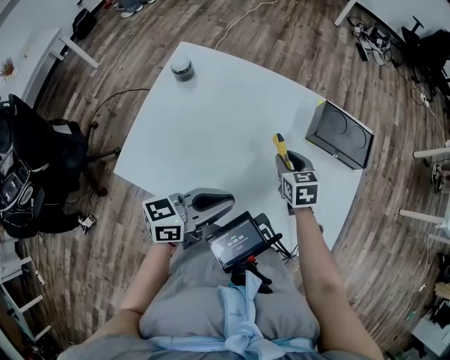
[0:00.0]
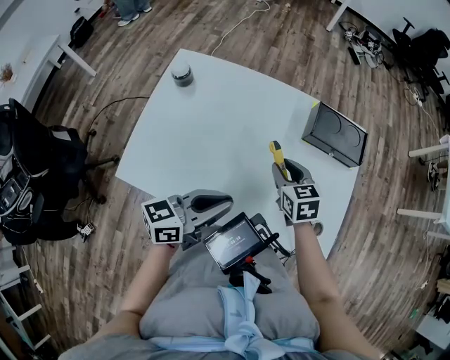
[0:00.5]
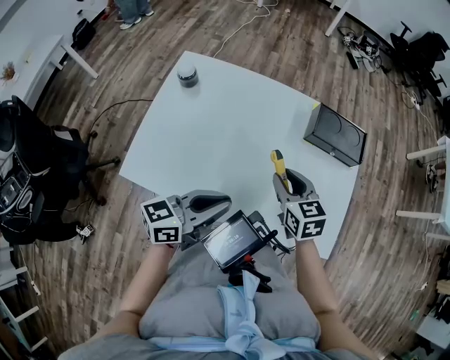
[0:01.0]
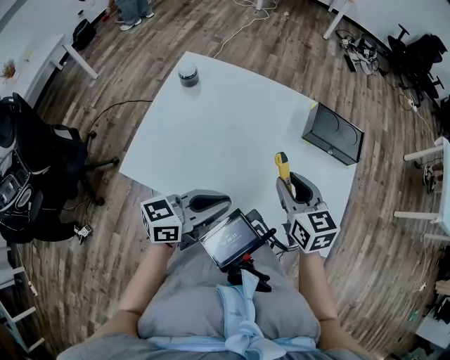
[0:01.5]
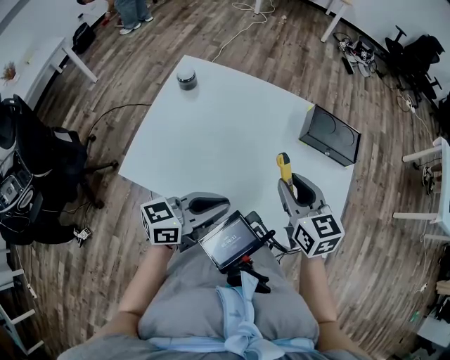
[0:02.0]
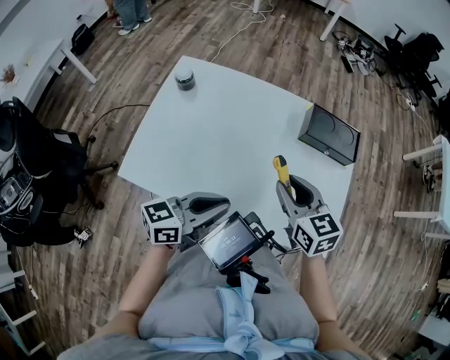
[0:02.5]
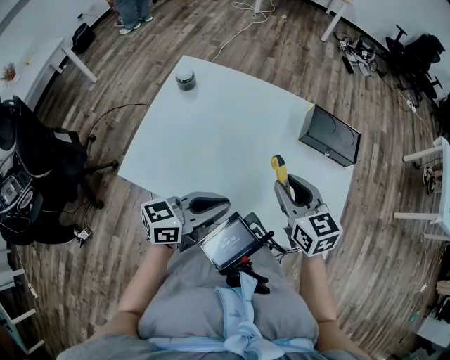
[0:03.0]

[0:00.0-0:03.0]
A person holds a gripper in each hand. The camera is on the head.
0:00.0 to 0:01.5: The right gripper travels upward and backward by about 15 cm.
0:01.5 to 0:03.0: The grippers stay close to where they were, moving slightly.

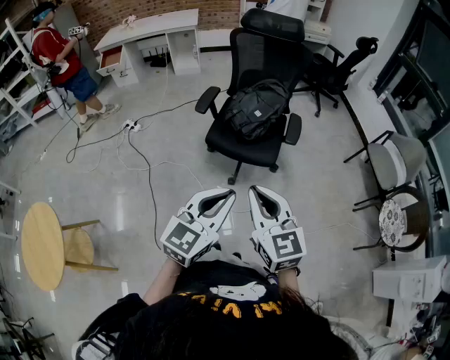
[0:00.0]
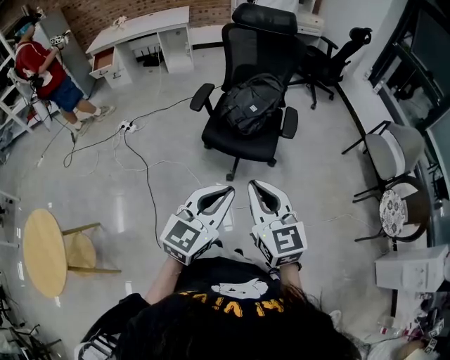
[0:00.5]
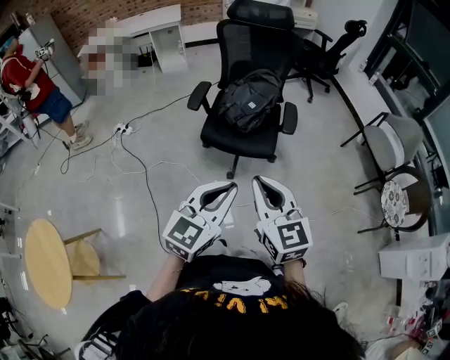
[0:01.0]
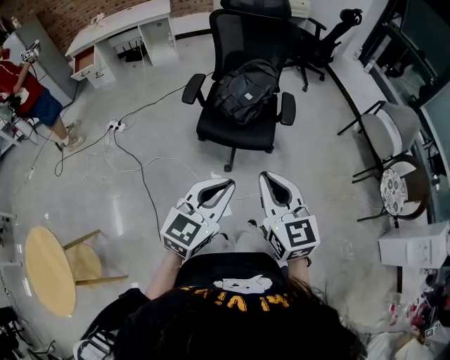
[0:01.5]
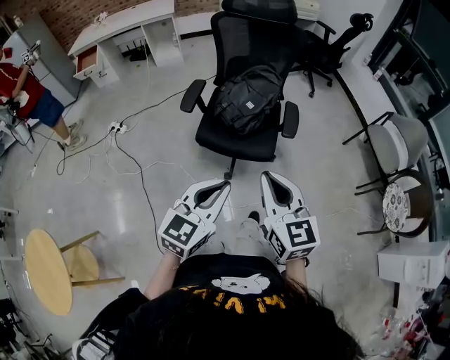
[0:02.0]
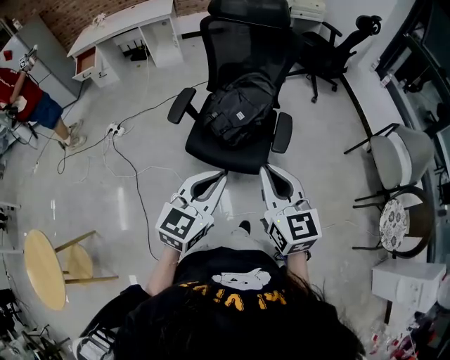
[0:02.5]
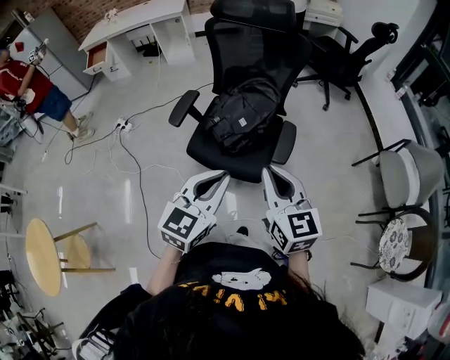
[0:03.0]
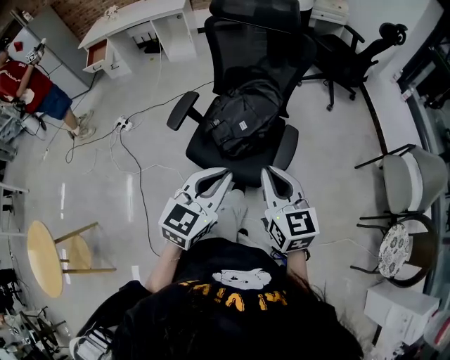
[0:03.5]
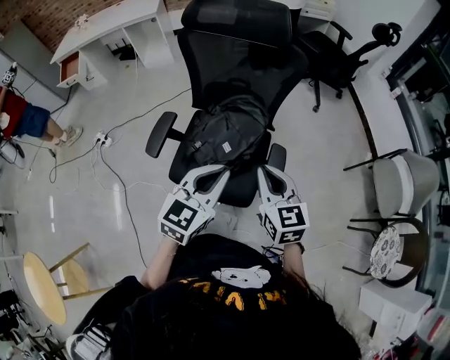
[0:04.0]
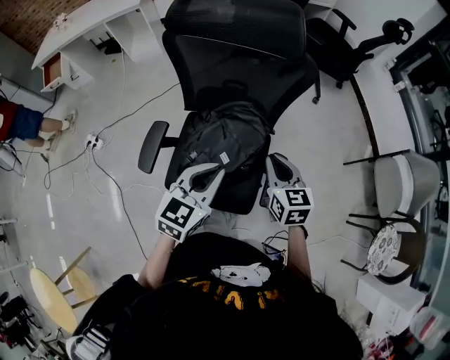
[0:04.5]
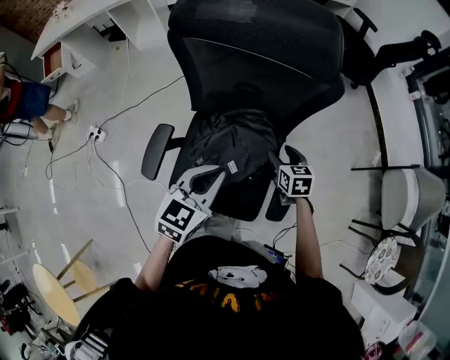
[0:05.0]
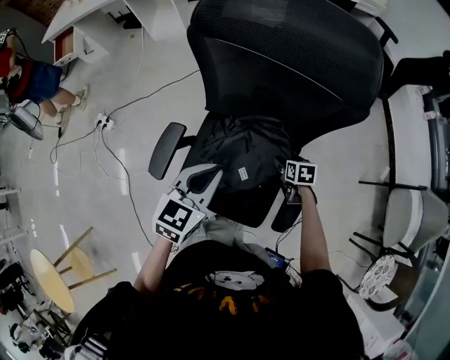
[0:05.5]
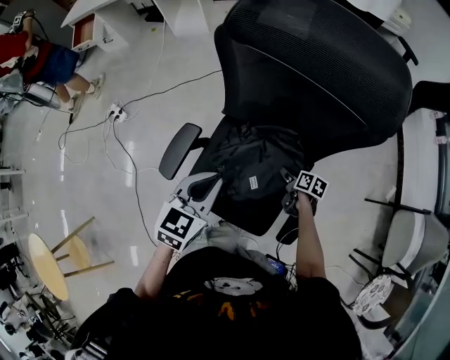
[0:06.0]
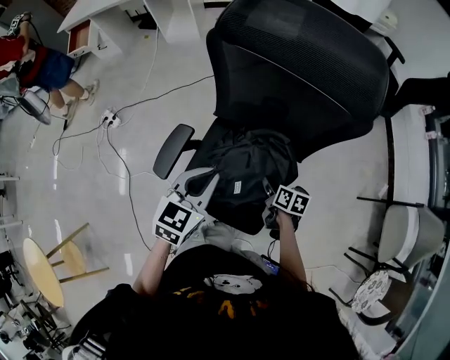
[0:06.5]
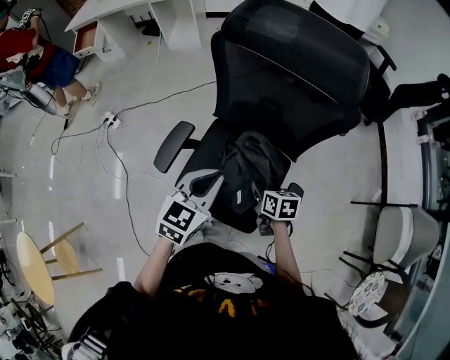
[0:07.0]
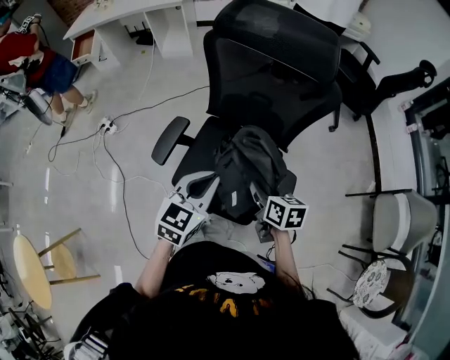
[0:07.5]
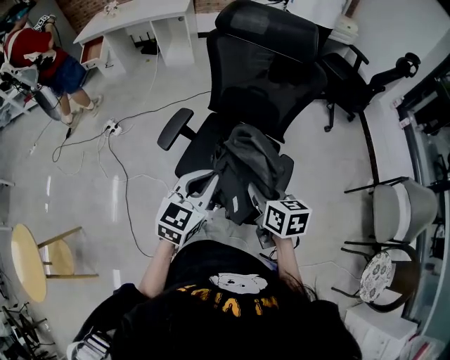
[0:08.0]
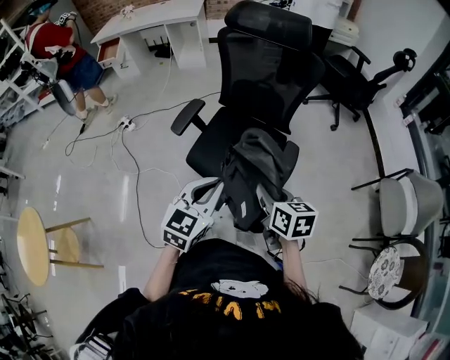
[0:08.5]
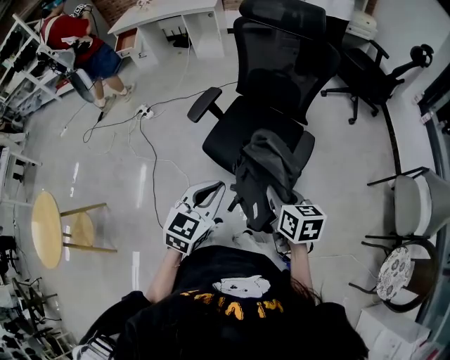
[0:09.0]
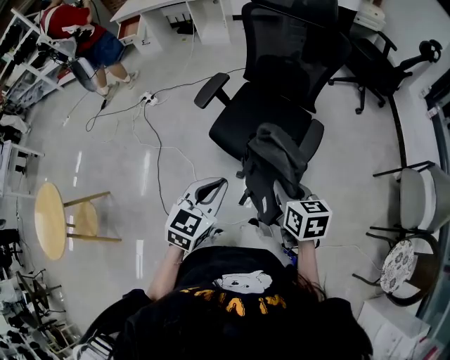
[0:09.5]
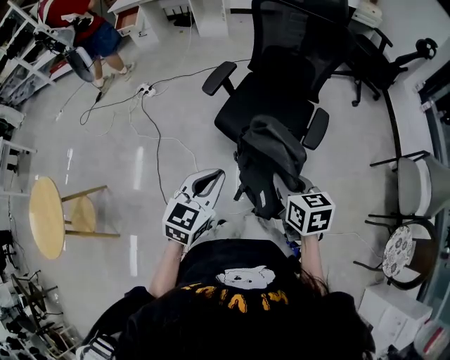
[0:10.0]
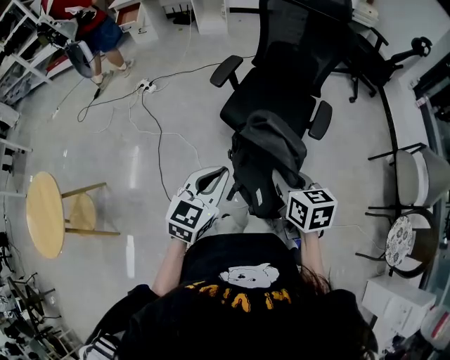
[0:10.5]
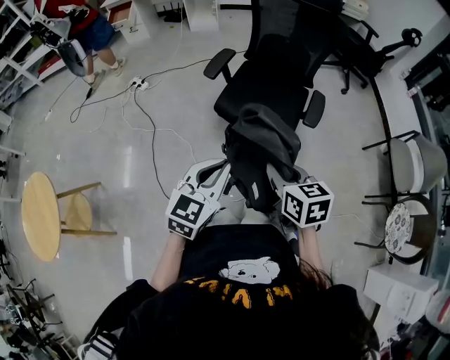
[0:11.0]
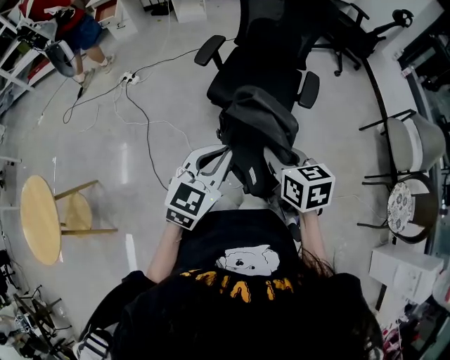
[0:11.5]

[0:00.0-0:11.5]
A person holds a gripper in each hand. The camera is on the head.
0:00.0 to 0:02.0: The grippers both shift forward by roughly 10 cm.
0:02.0 to 0:04.0: The grippers both shift forward by roughly 35 cm.
0:04.0 to 0:06.0: The right gripper travels downward and forward by roughly 40 cm, swivels approximately 60 degrees, and opens; the left gripper is displaced forward, to the left and downward by about 25 cm.
0:06.0 to 0:07.5: The left gripper travels backward and upward by roughly 15 cm; the right gripper heads upward and backward, covering approximately 30 cm, rotates some 30 degrees, and closes its fingers.
0:07.5 to 0:09.5: Both grippers travel together backward, roughly 30 cm.
0:09.5 to 0:11.5: The left gripper shifts about 15 cm backward and to the left; the right gripper heads to the left and backward, covering about 20 cm.

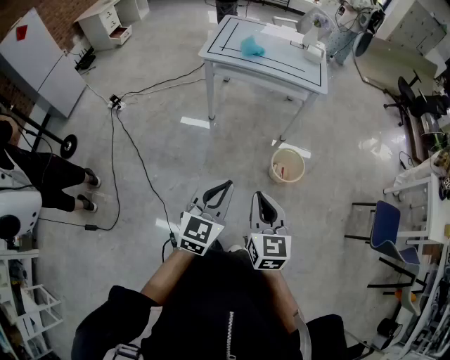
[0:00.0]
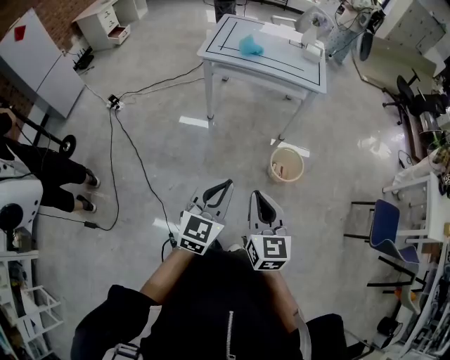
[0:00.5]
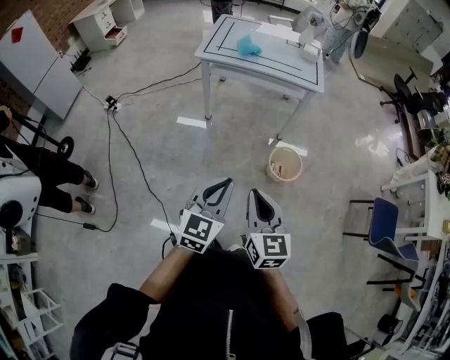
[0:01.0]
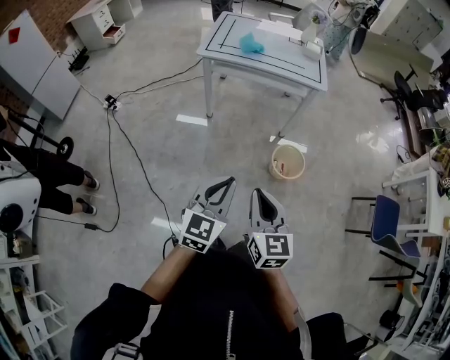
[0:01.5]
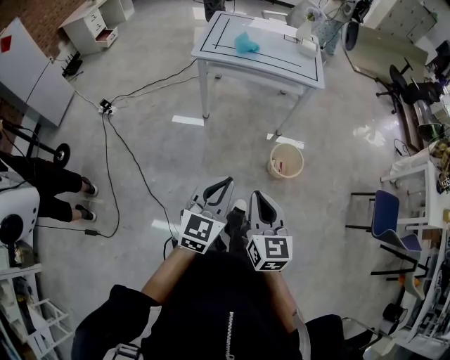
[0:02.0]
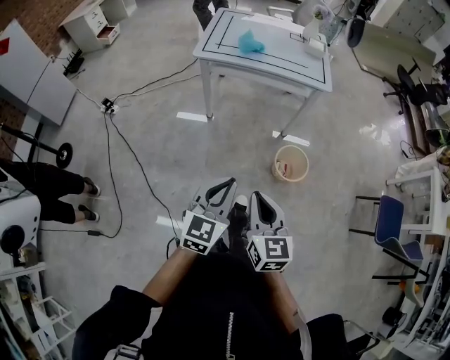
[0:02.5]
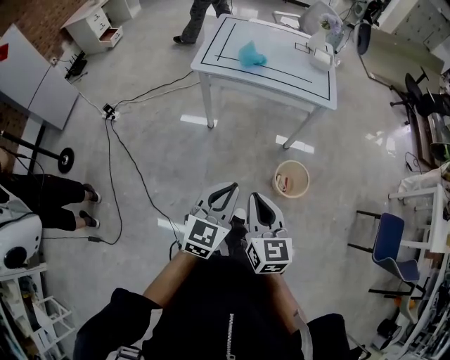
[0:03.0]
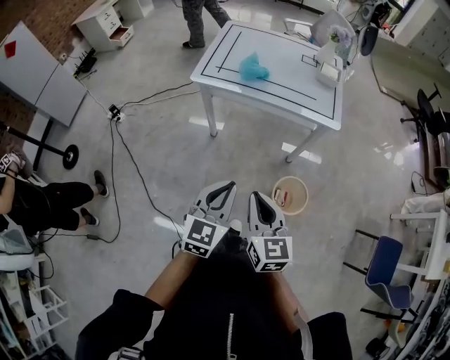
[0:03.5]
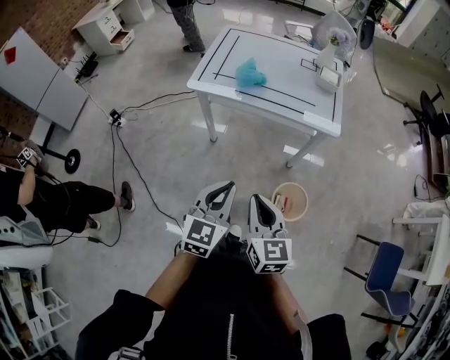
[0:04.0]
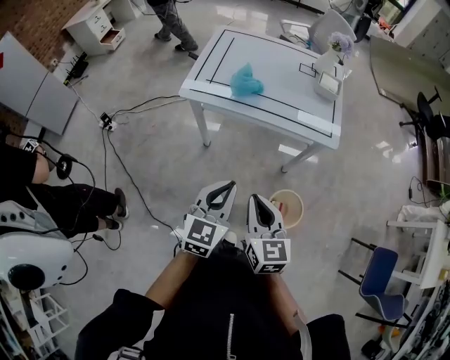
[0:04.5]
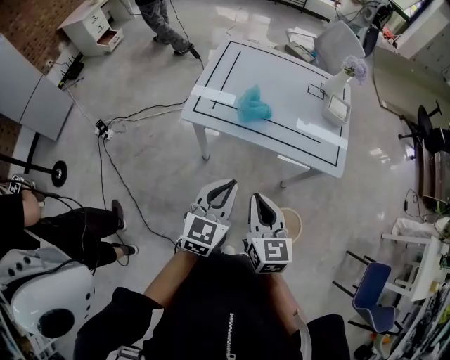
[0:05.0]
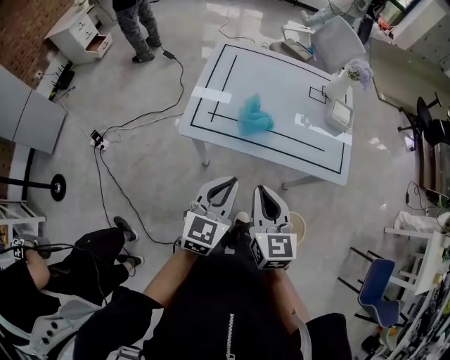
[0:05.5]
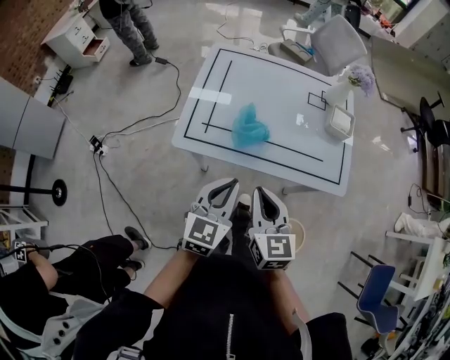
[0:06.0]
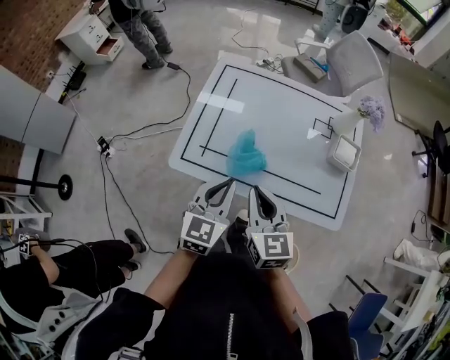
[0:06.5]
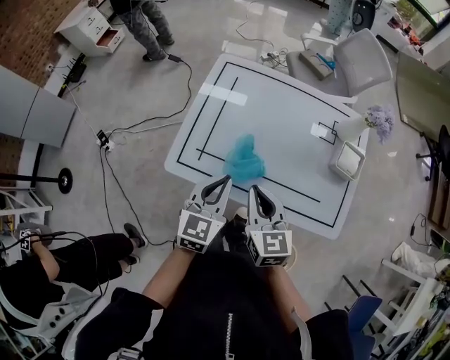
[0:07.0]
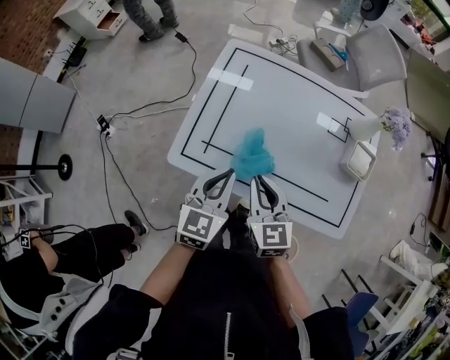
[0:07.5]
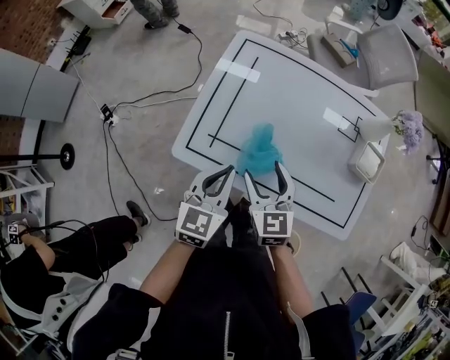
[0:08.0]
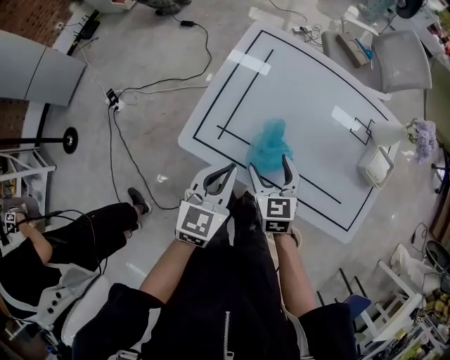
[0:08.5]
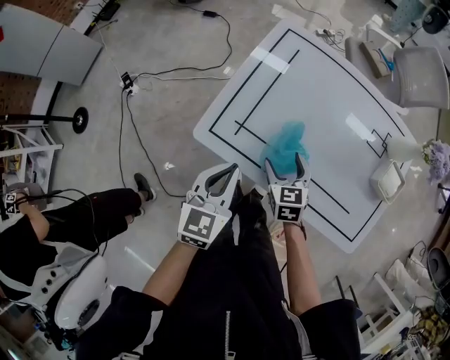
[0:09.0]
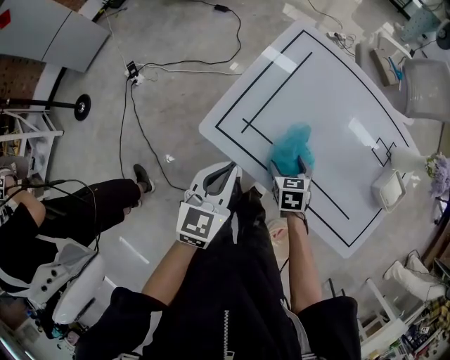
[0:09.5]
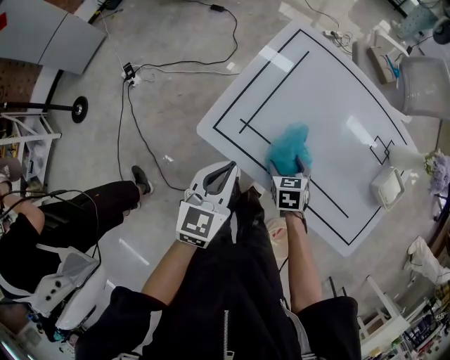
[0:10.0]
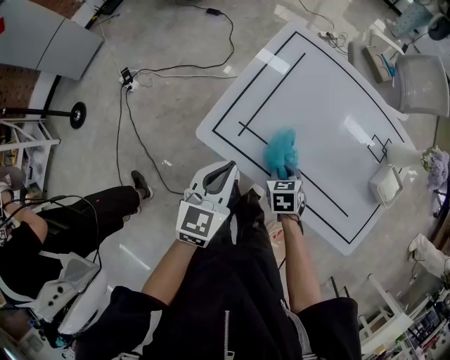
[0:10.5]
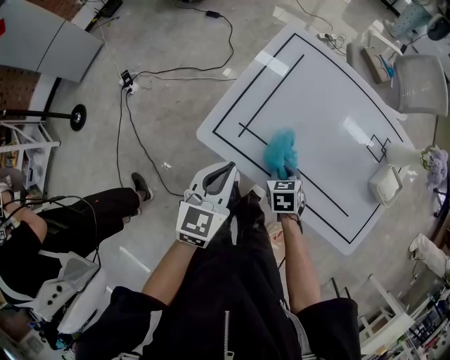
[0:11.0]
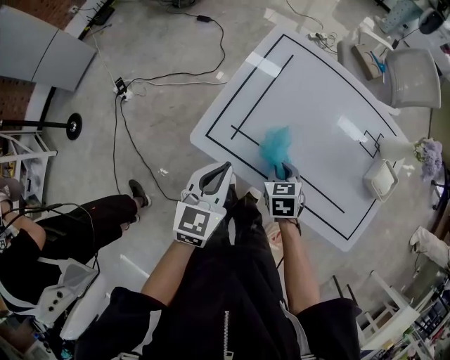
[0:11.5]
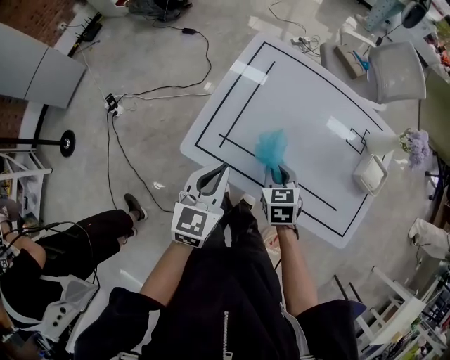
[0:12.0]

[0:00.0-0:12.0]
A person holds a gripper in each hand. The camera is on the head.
0:00.0 to 0:02.0: There are only small adjustments of the grippers.
0:02.0 to 0:04.0: Both grippers move forward, approximately 30 cm.
0:04.0 to 0:06.0: The grippers both shift forward by roughly 35 cm.
0:06.0 to 0:08.0: Both grippers move forward, some 20 cm. The right gripper opens its fingers.
0:08.0 to 0:10.0: The left gripper heads to the left, covering roughly 5 cm. Meanwhile the right gripper shifts approximately 20 cm downward, and angles its fingers downward, by about 30 degrees.
0:10.0 to 0:12.0: The right gripper goes about 10 cm upward, and closes.
